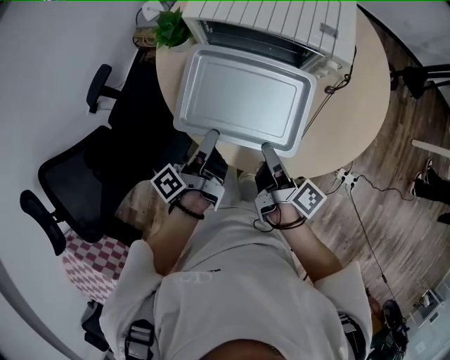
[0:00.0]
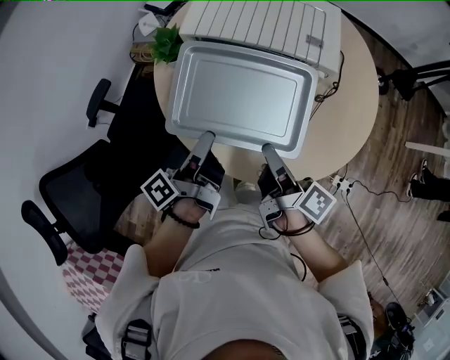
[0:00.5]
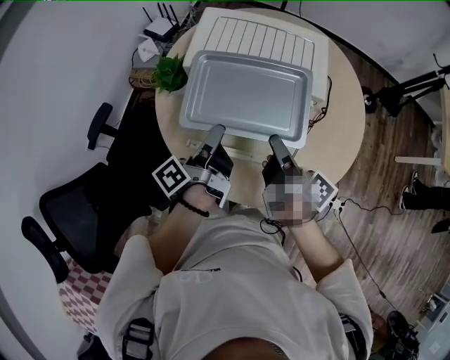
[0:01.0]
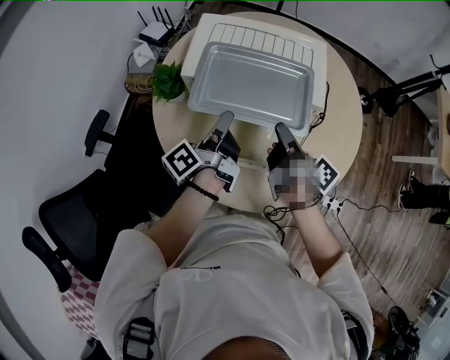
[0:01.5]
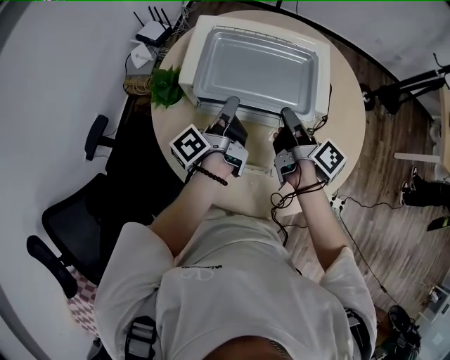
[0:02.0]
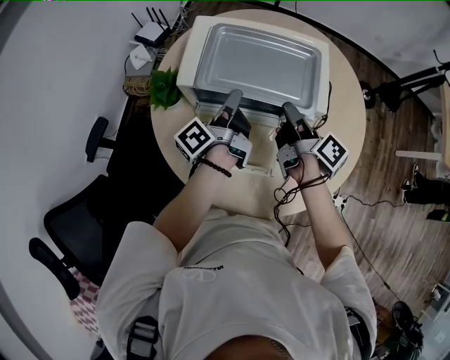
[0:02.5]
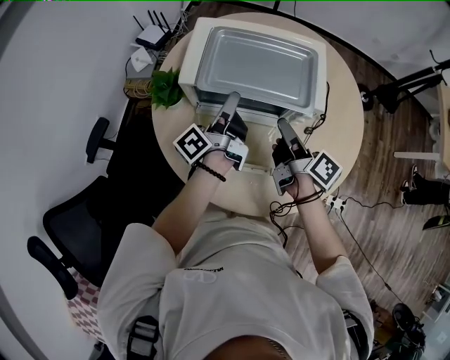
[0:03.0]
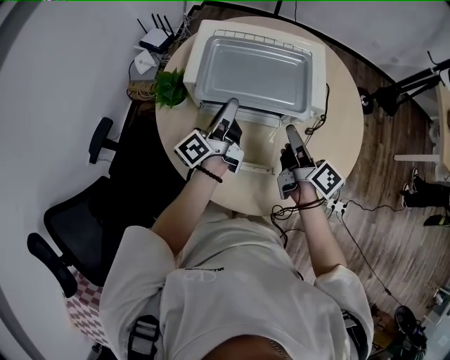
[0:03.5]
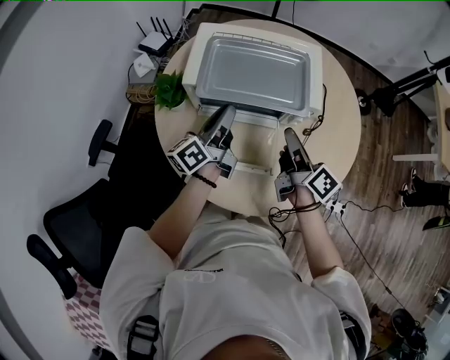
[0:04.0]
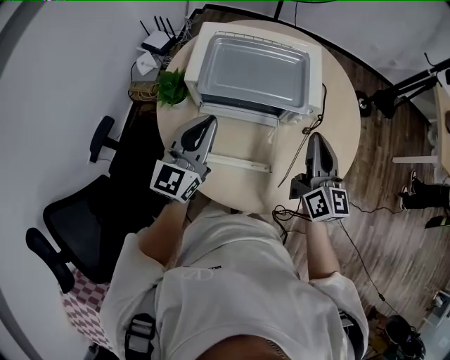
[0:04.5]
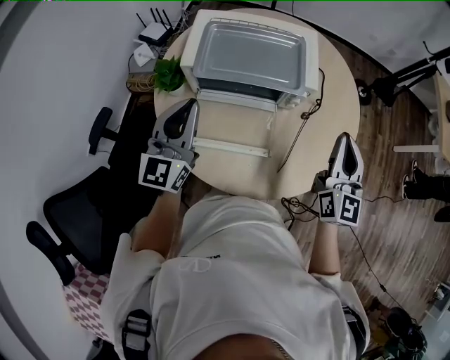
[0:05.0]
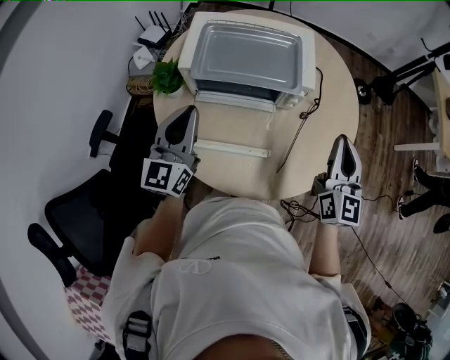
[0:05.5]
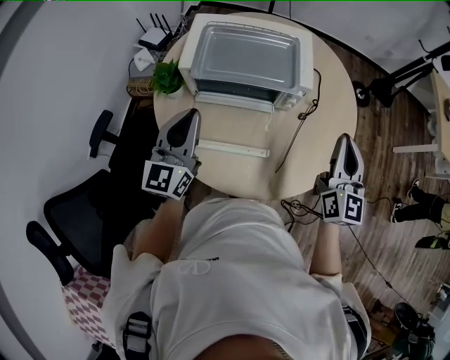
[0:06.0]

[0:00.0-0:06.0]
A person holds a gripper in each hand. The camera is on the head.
0:00.0 to 0:02.0: Both grippers move forward, approximately 25 cm.
0:02.0 to 0:04.0: The right gripper heads backward, covering about 5 cm; the left gripper turns by roughly 30 degrees.
0:04.0 to 0:06.0: The left gripper heads backward and upward, covering some 15 cm, and rotates around the line of its fingers by about 60 degrees, clockwise from behind. The right gripper goes about 20 cm to the right, upward and backward, twists about 60 degrees counterclockwise, seen from behind, and closes up.

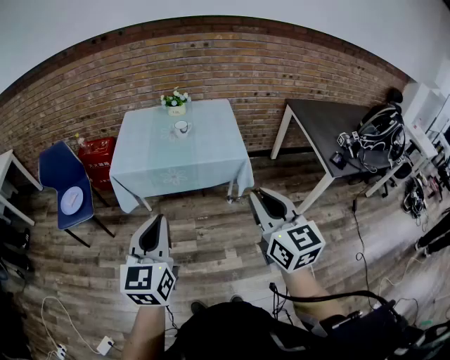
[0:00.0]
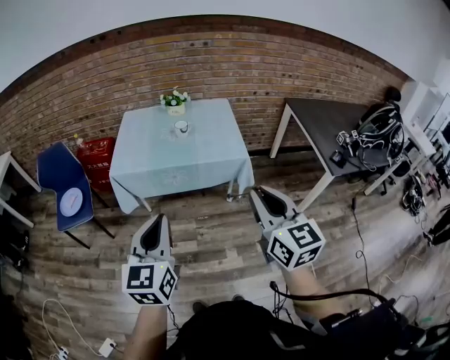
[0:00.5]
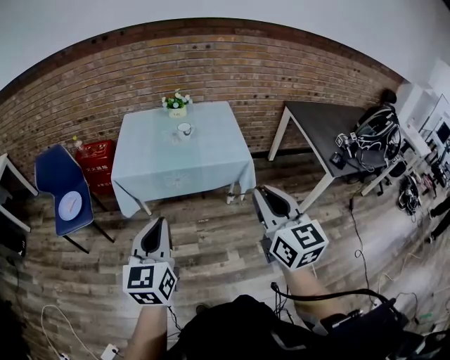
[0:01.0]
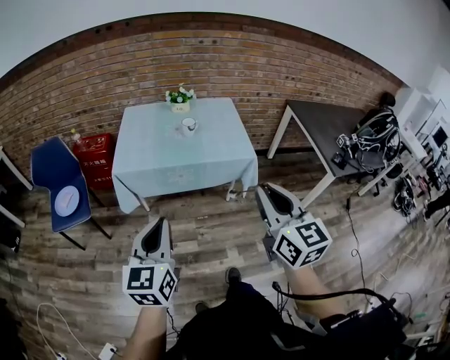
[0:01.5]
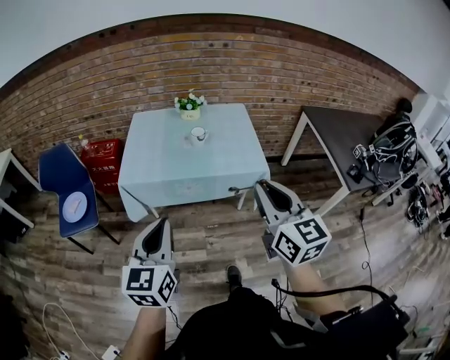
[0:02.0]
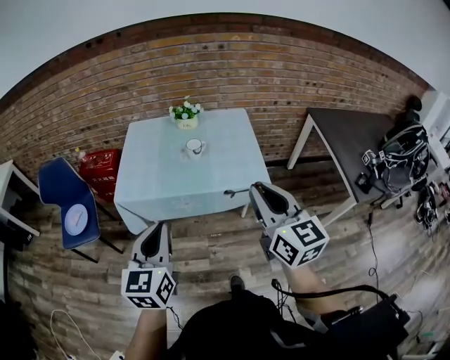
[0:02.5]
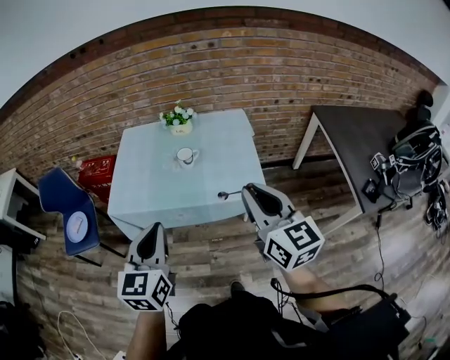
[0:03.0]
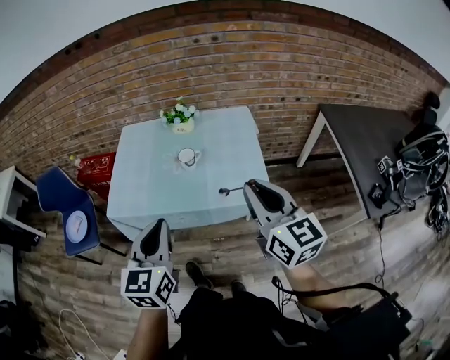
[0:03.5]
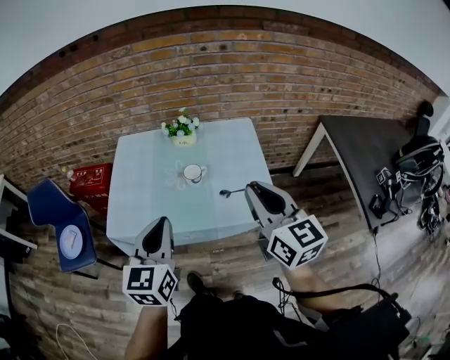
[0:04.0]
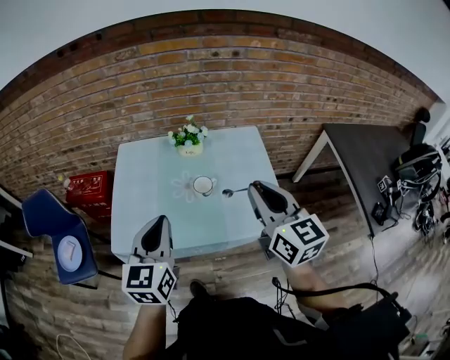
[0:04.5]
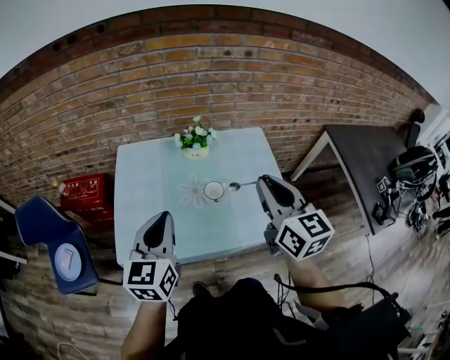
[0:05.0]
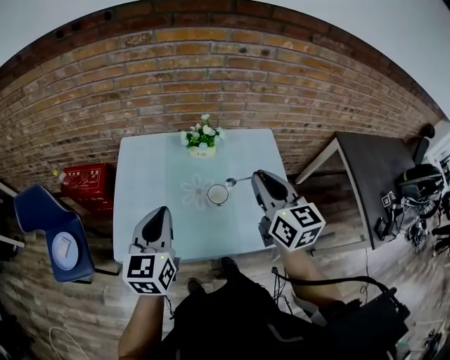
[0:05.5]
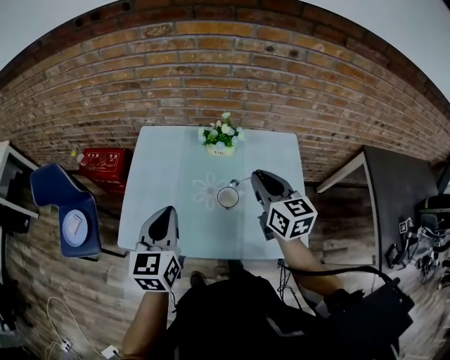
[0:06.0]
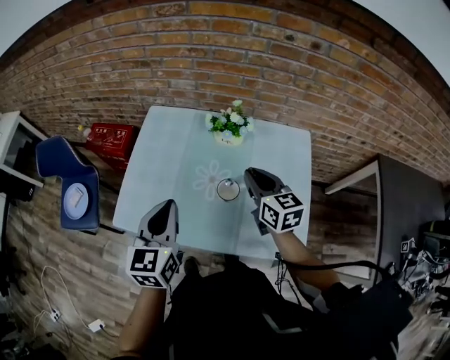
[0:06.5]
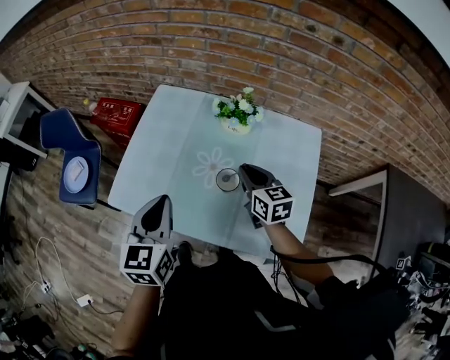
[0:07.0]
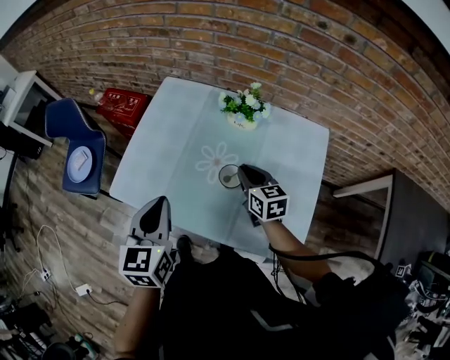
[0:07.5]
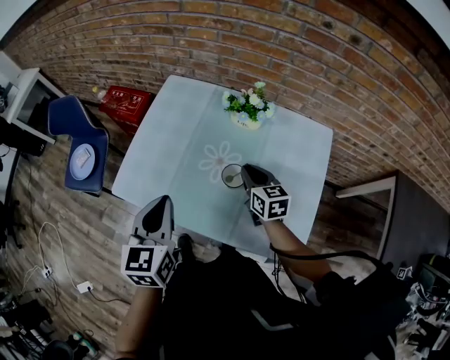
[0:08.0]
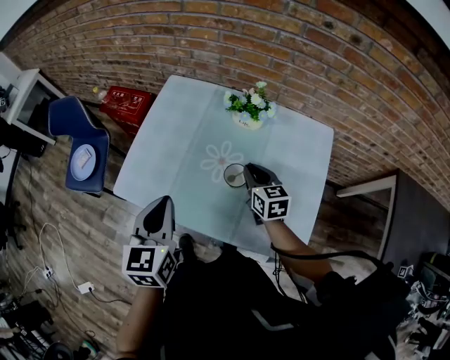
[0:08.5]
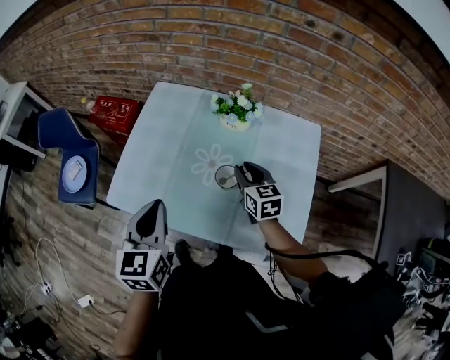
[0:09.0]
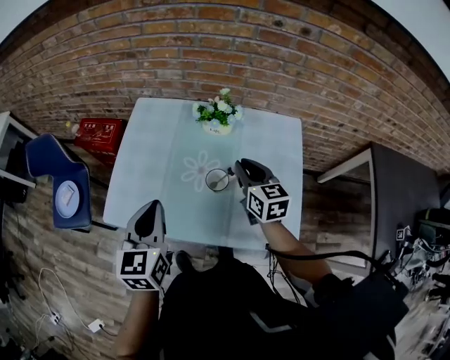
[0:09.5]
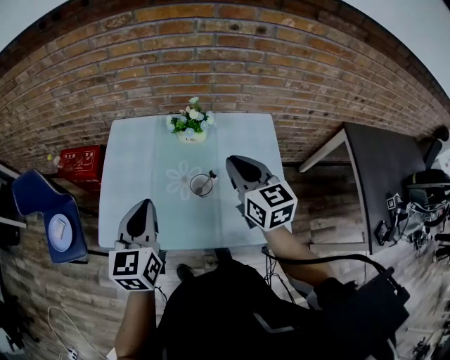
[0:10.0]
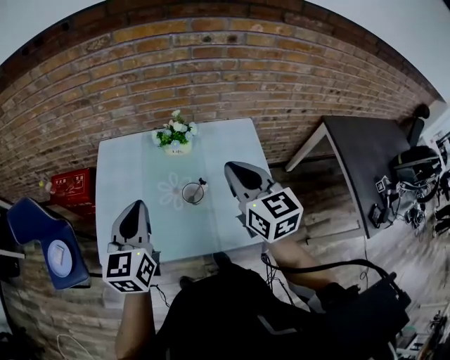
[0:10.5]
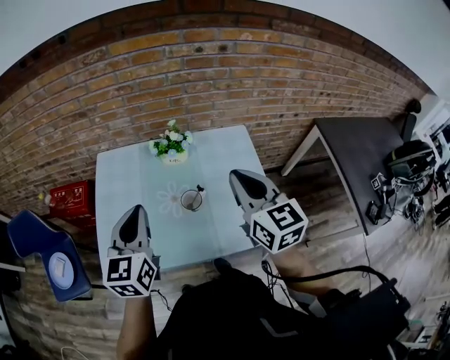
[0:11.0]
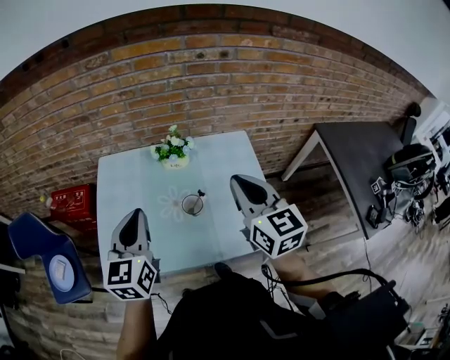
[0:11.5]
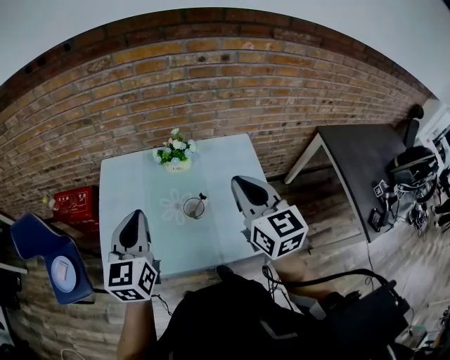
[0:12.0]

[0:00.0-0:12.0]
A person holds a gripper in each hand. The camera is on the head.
0:00.0 to 0:02.0: The grippers both shift forward and to the left by approximately 15 cm.
0:02.0 to 0:04.0: Both grippers travel together forward, roughly 30 cm.
0:04.0 to 0:06.0: The right gripper travels forward by some 25 cm, while the left gripper is displaced forward and to the left by approximately 20 cm.
0:06.0 to 0:08.0: The right gripper is displaced downward by roughly 20 cm, and rotates about 20 degrees; the left gripper ends up roughly 5 cm from where it was.
0:08.0 to 0:10.0: The right gripper shifts some 20 cm upward, and swivels some 20 degrees. The left gripper ends up some 5 cm from where it was.
0:10.0 to 0:12.0: The right gripper moves upward and backward, approximately 10 cm. The left gripper shifts about 5 cm upward.

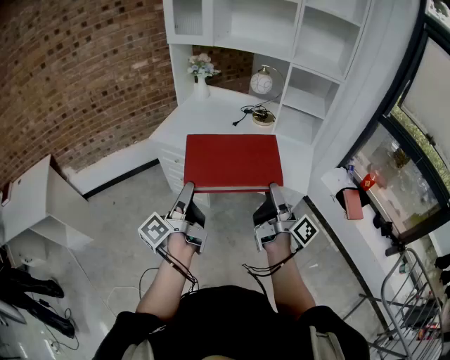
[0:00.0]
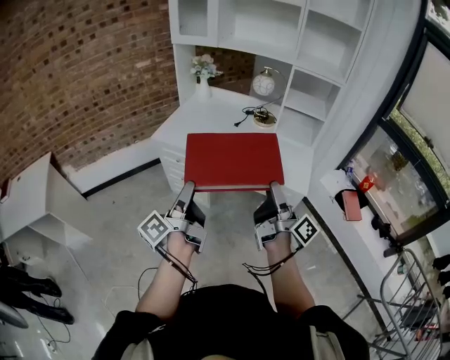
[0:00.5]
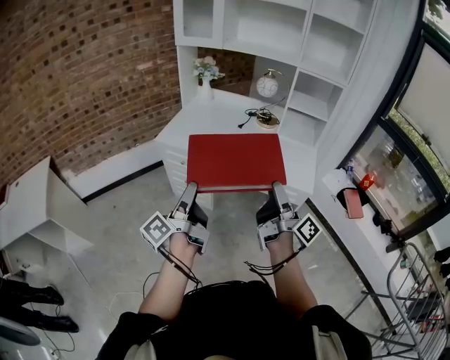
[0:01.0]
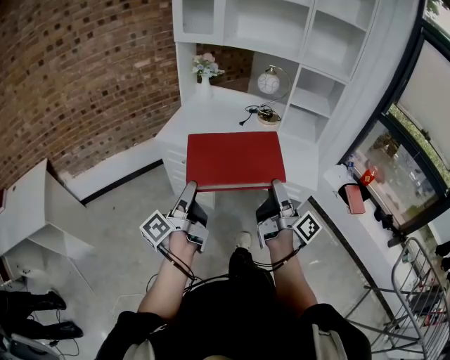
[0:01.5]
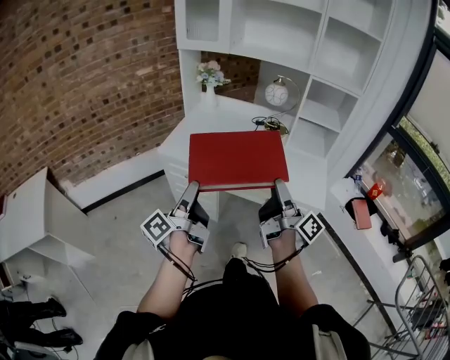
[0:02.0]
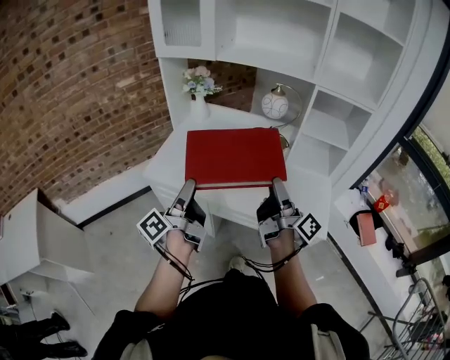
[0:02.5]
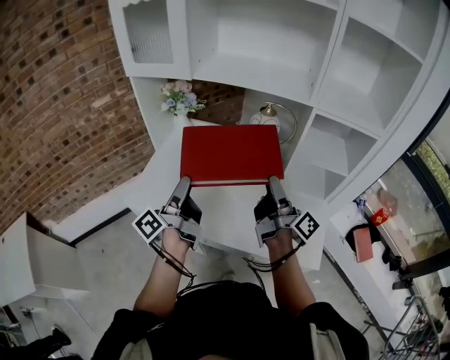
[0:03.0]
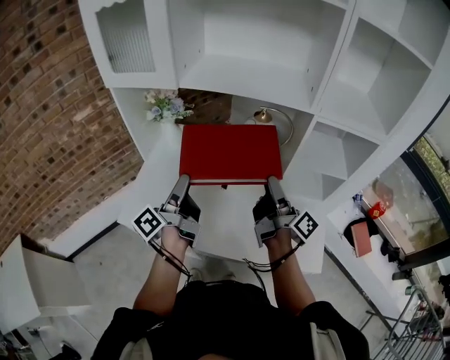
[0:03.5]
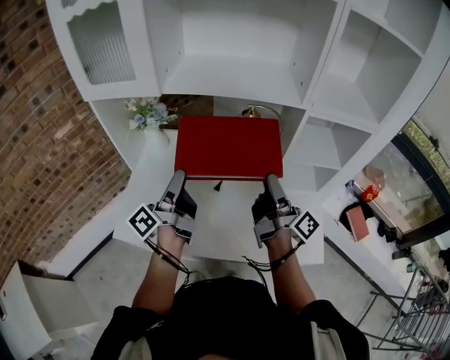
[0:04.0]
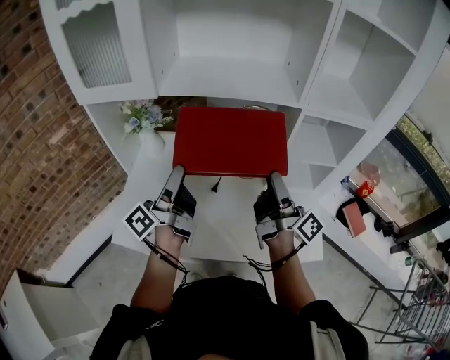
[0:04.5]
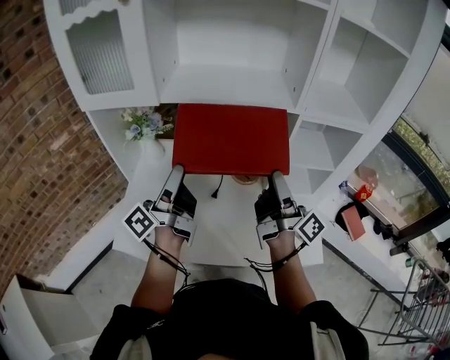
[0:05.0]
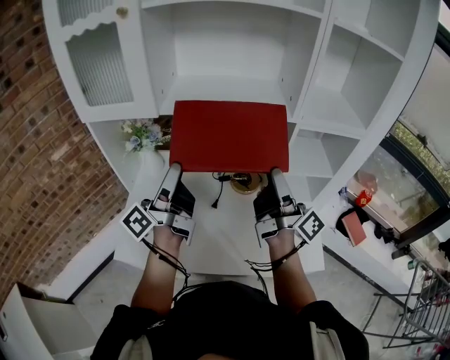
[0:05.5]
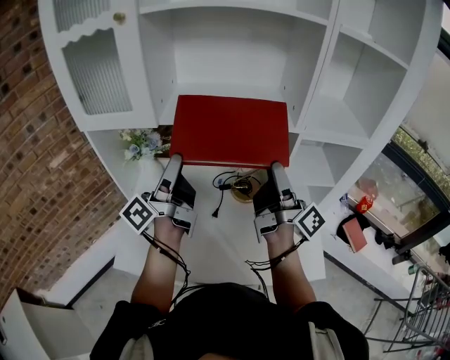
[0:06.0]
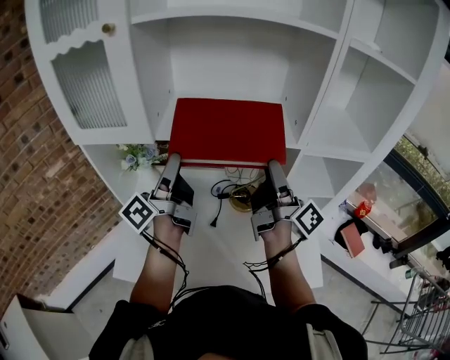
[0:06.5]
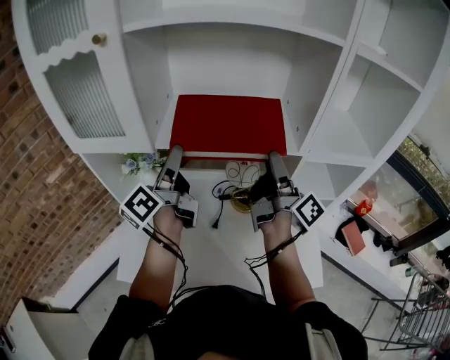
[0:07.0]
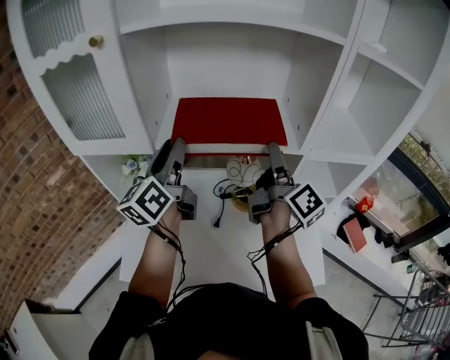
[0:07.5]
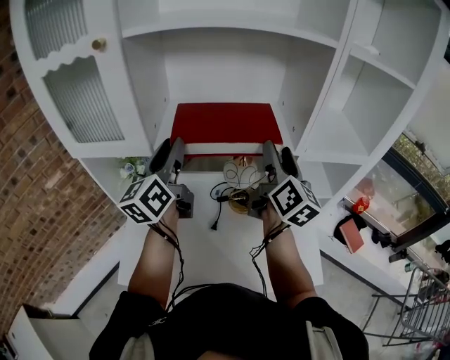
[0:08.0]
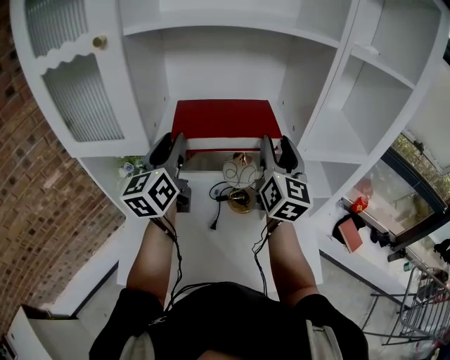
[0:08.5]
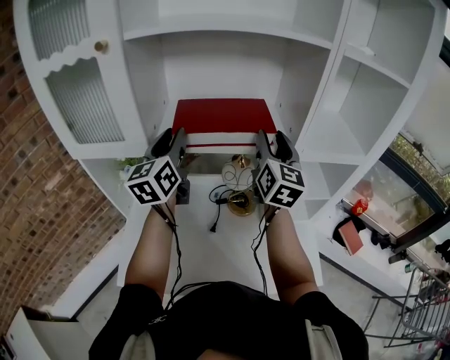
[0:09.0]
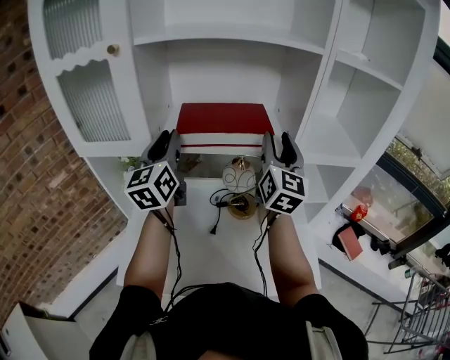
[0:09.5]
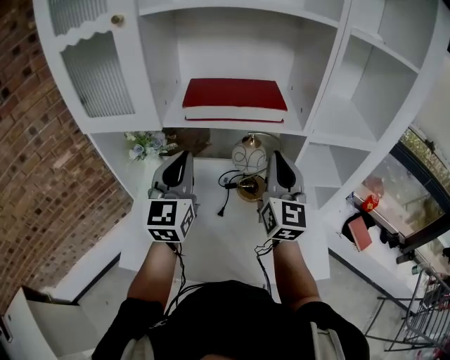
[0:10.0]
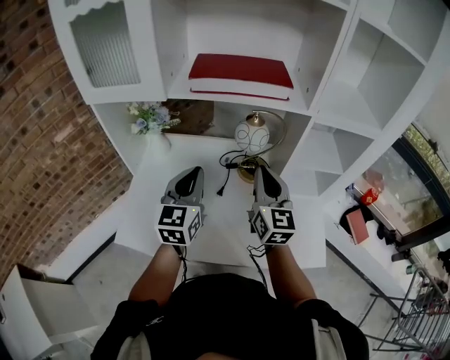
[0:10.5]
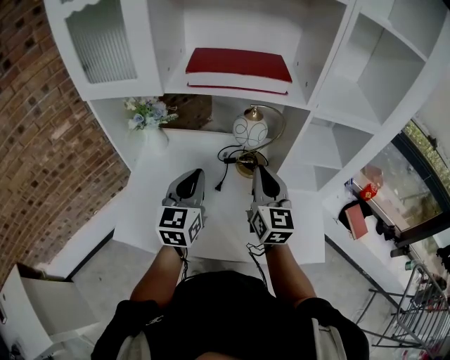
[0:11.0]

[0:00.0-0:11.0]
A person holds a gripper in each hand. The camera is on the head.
0:00.0 to 0:02.0: The grippers both shift forward and to the left by some 10 cm.
0:02.0 to 0:03.5: The pair of grippers is taken forward, some 40 cm.
0:03.5 to 0:05.5: The right gripper moves upward, about 10 cm, and turns by roughly 20 degrees. The left gripper moves upward and forward, approximately 10 cm, and turns by some 20 degrees.
0:05.5 to 0:07.5: The right gripper heads forward, covering approximately 15 cm, and turns by about 20 degrees. Meanwhile the left gripper is displaced forward and upward by roughly 15 cm, and turns by some 40 degrees.
0:07.5 to 0:09.0: The right gripper rolls counterclockwise, seen from behind, by about 60 degrees.
0:09.0 to 0:11.0: Both grippers travel together downward and backward, approximately 25 cm. The left gripper closes; the right gripper closes.
